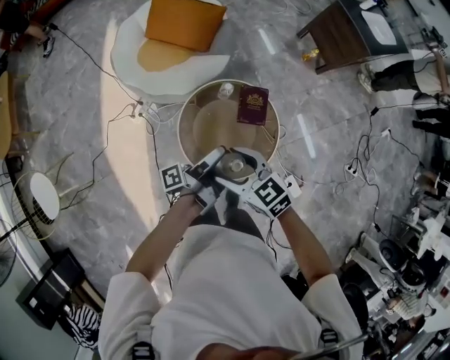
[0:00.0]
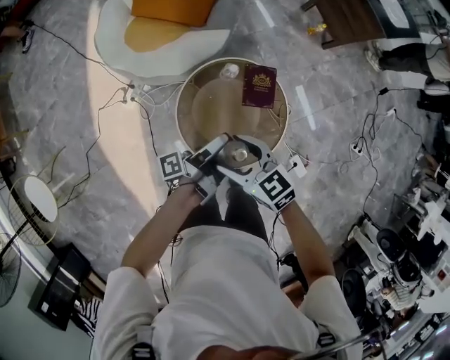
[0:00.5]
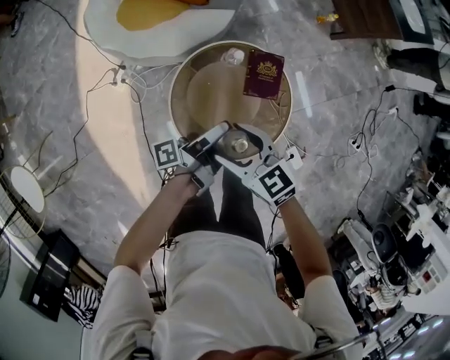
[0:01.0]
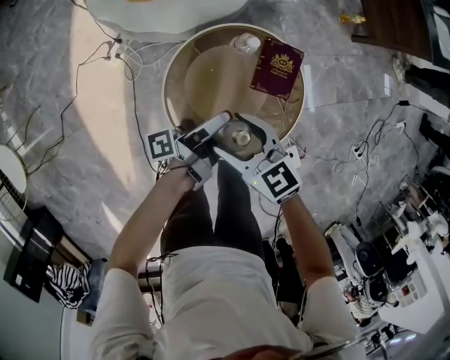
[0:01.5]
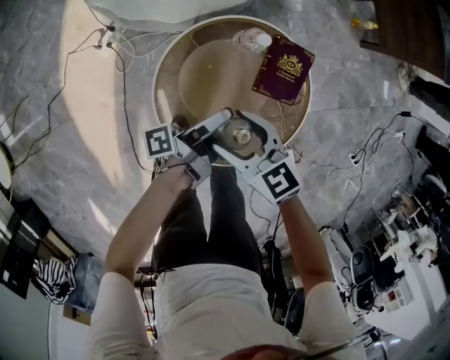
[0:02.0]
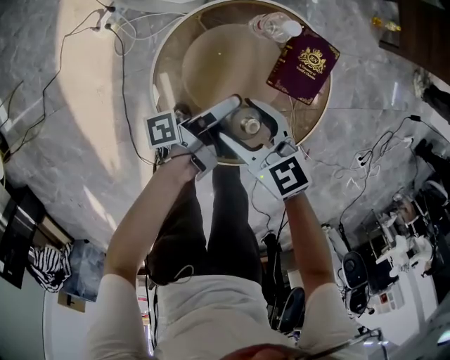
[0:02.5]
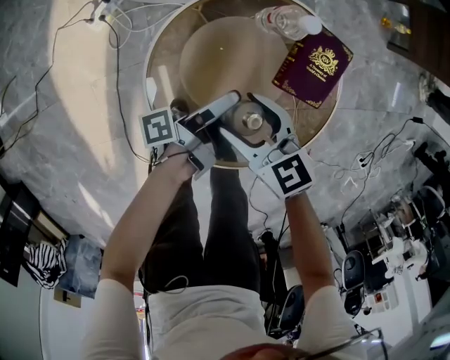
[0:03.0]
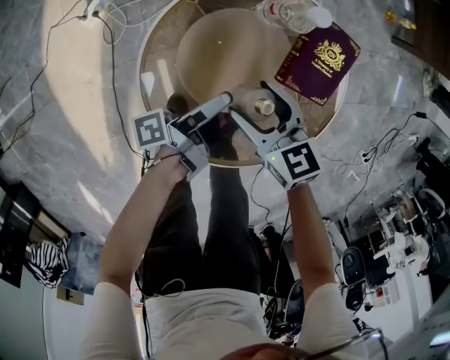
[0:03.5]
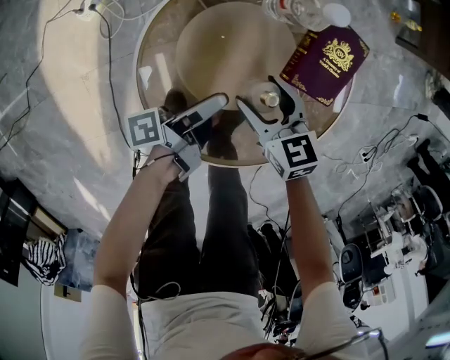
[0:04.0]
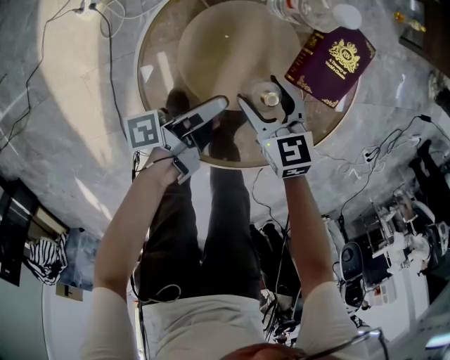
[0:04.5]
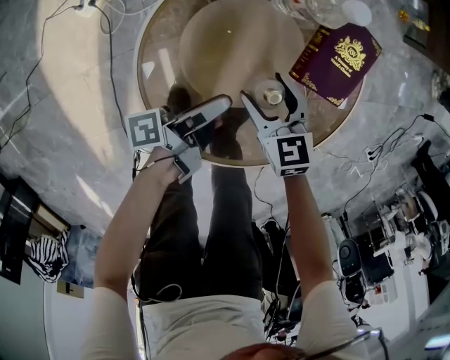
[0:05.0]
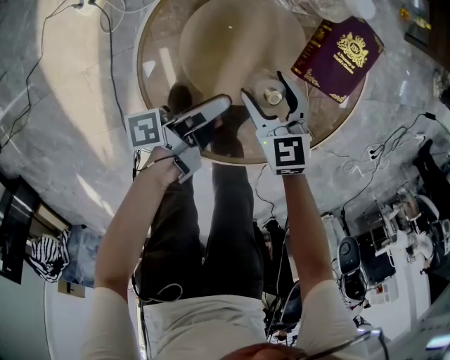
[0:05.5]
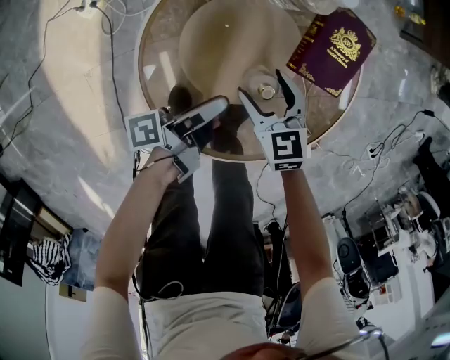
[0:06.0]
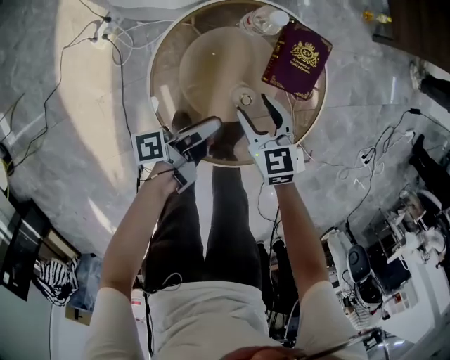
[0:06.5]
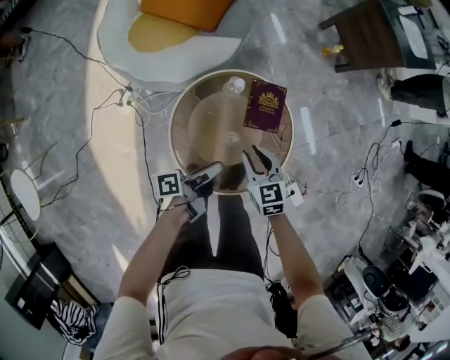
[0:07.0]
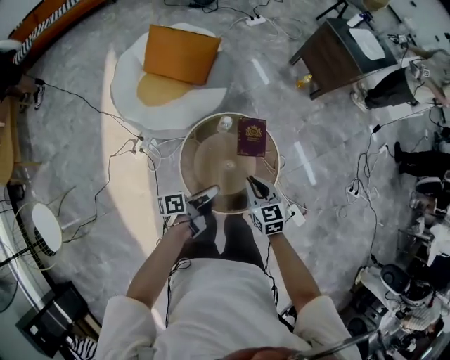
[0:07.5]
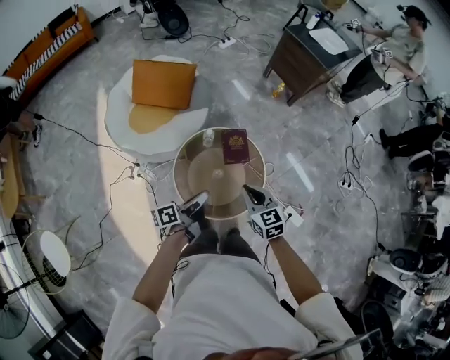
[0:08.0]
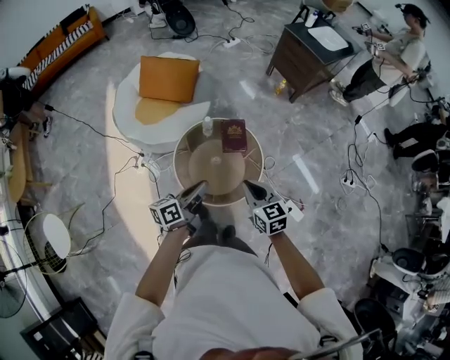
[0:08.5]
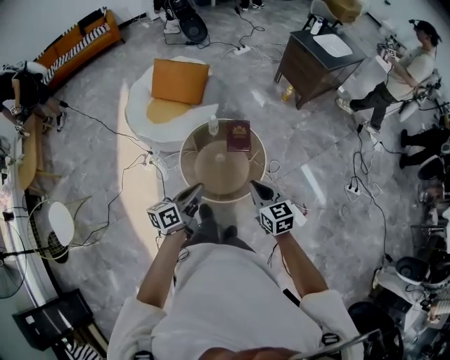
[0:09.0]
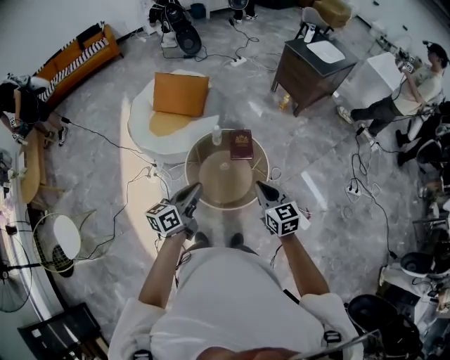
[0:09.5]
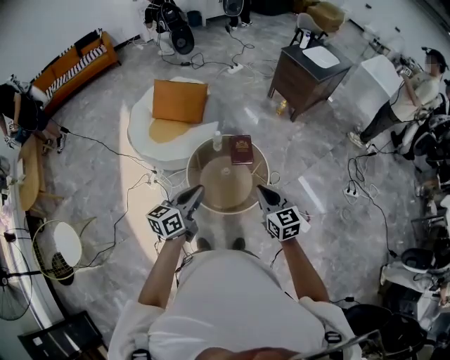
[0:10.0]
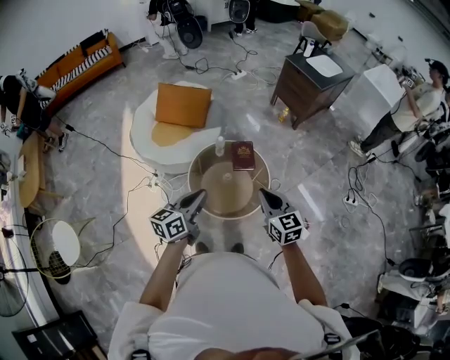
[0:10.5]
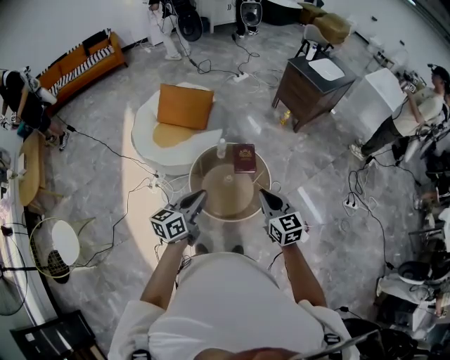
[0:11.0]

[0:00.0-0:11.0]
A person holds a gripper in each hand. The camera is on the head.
0:00.0 to 0:02.0: The right gripper moves downward, approximately 35 cm.
0:02.0 to 0:03.5: The right gripper goes approximately 20 cm downward.
0:03.5 to 0:05.5: The right gripper shifts roughly 10 cm downward.
0:05.5 to 0:07.5: The right gripper is displaced upward by roughly 50 cm, rotates some 20 degrees, and closes up.
0:07.5 to 0:09.0: The right gripper moves roughly 35 cm.
0:09.0 to 0:11.0: The right gripper moves upward, roughly 10 cm.

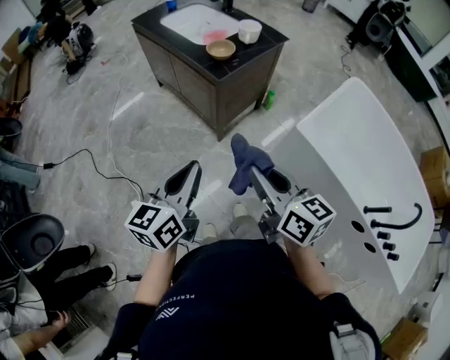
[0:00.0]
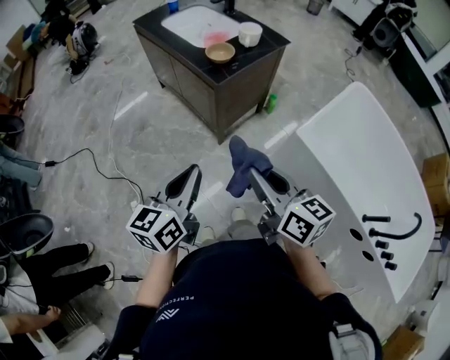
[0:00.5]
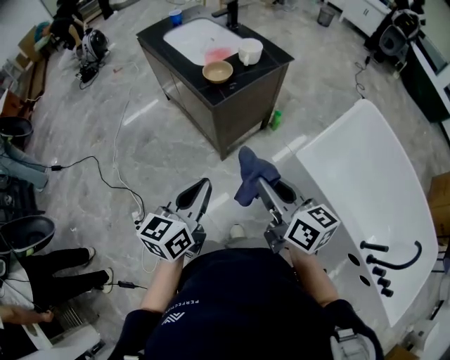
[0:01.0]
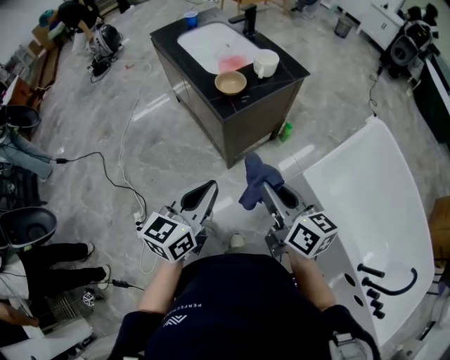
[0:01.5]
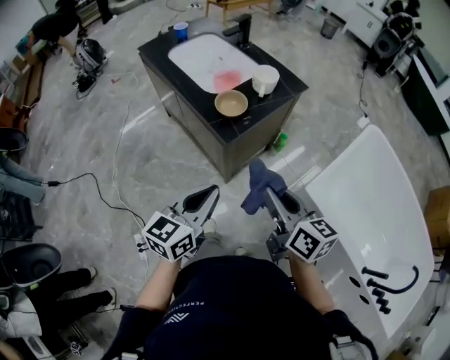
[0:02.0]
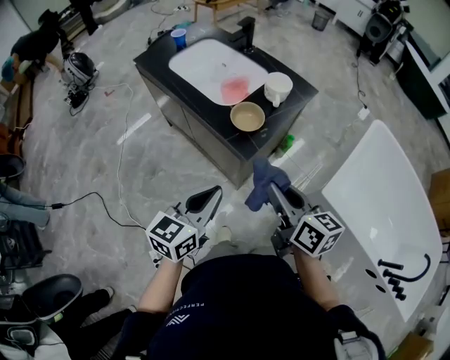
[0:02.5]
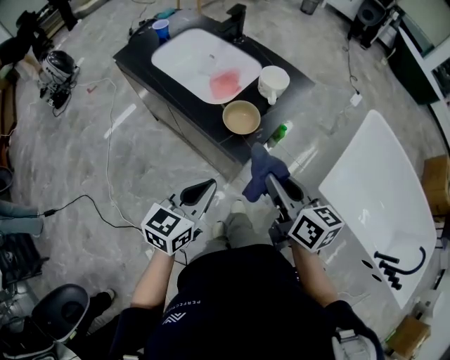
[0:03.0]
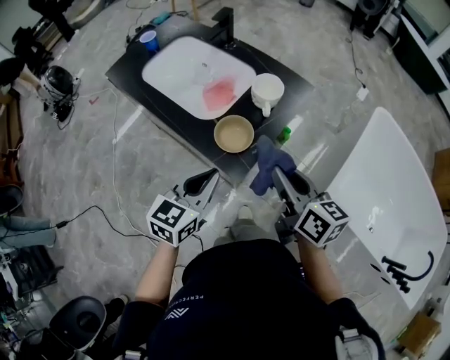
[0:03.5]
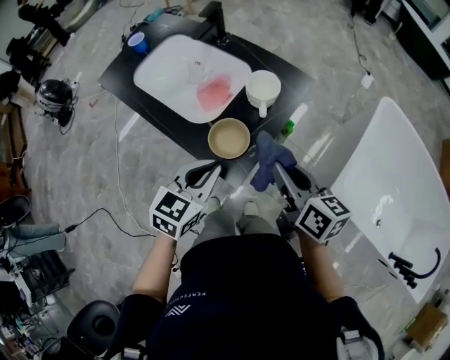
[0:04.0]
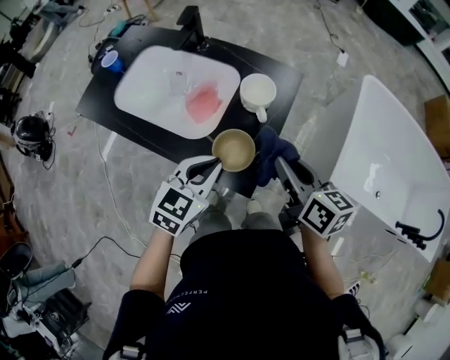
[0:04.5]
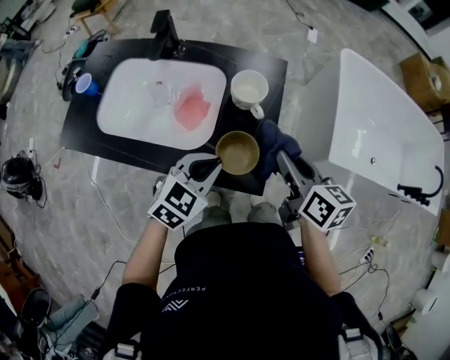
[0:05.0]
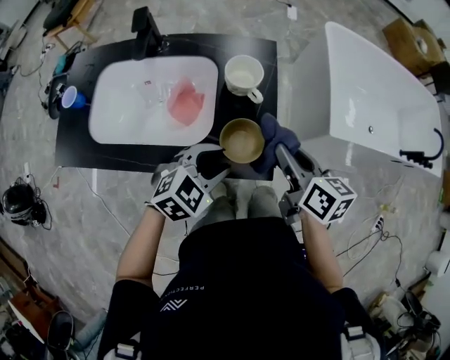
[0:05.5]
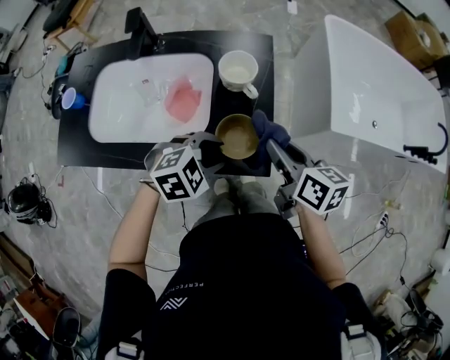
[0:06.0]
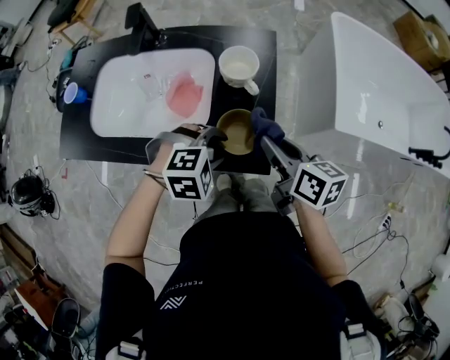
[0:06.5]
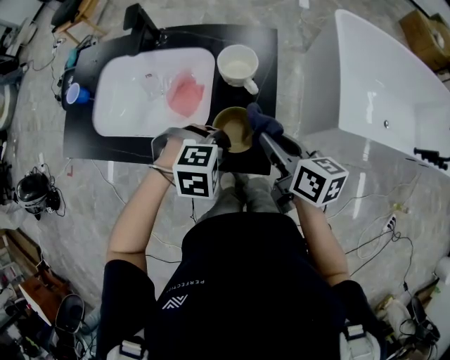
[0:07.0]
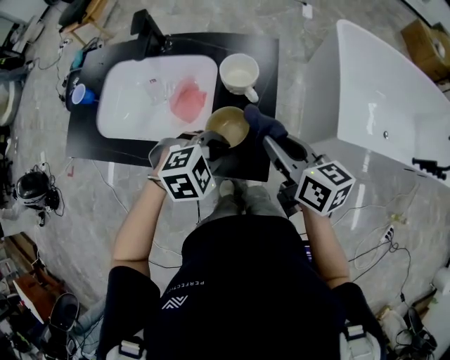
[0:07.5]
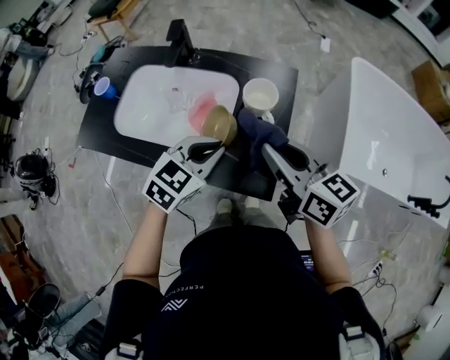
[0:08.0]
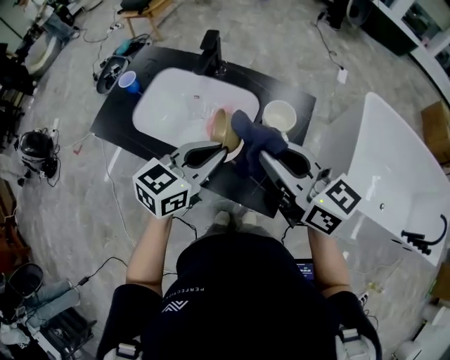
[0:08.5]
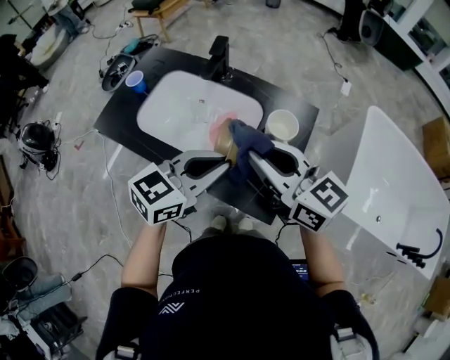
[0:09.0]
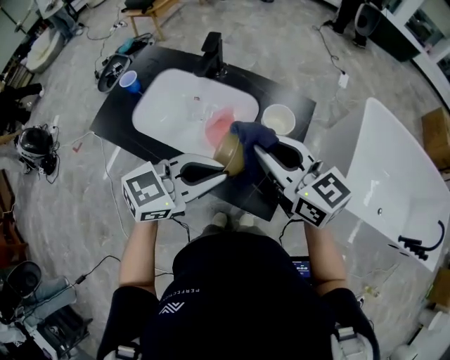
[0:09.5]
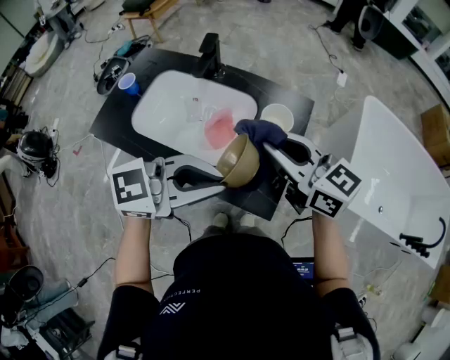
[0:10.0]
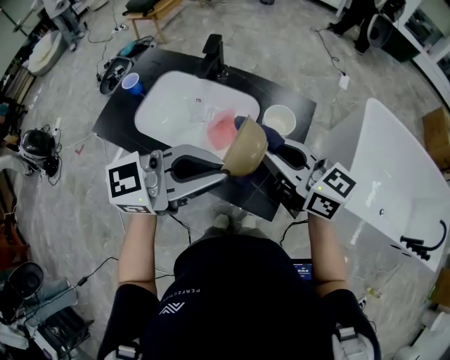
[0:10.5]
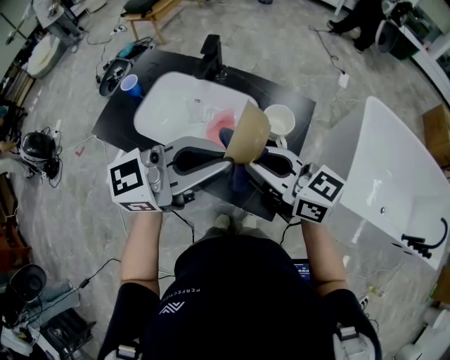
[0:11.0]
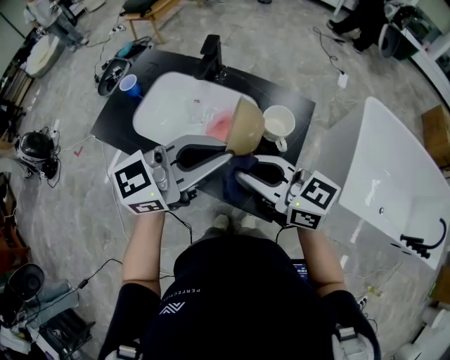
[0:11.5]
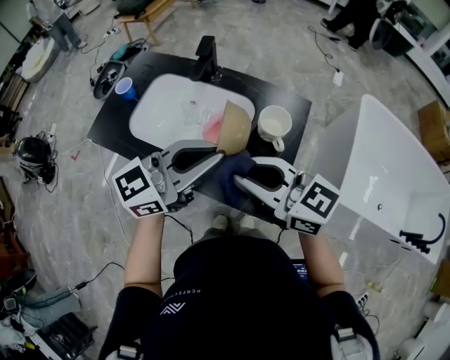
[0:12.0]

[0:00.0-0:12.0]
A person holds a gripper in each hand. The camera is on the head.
0:00.0 to 0:02.0: The grippers both shift forward by approximately 20 cm.
0:02.0 to 0:04.0: The grippers both shift forward by approximately 25 cm. The left gripper changes its angle by roughly 30 degrees.
0:04.0 to 0:06.0: The left gripper ends up about 10 cm from where it was, changes its angle by approximately 80 degrees, and opens its fingers; the right gripper shifts by some 5 cm, and rotates some 30 degrees.
0:06.0 to 0:08.0: The grippers both shift upward by some 10 cm. The right gripper swivels approximately 30 degrees. Meanwhile the left gripper swivels about 40 degrees, and closes up.
0:08.0 to 0:10.0: The left gripper shifts approximately 15 cm upward, and changes its angle by roughly 40 degrees, while the right gripper ends up about 10 cm from where it was, and turns by about 20 degrees.
0:10.0 to 0:12.0: The left gripper moves some 5 cm, and turns by roughly 20 degrees, while the right gripper changes place by some 10 cm.

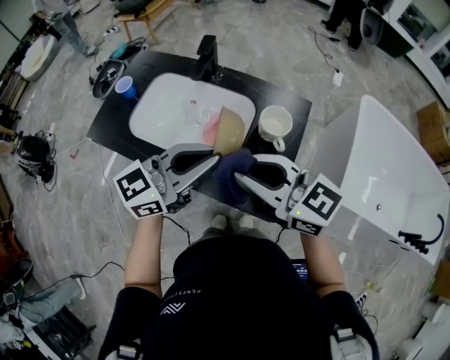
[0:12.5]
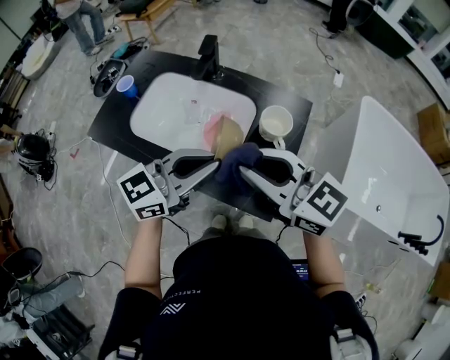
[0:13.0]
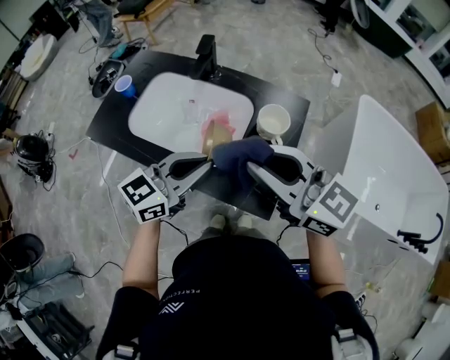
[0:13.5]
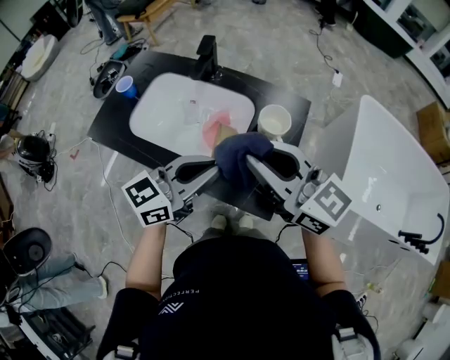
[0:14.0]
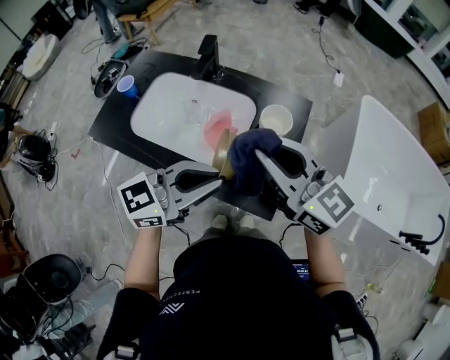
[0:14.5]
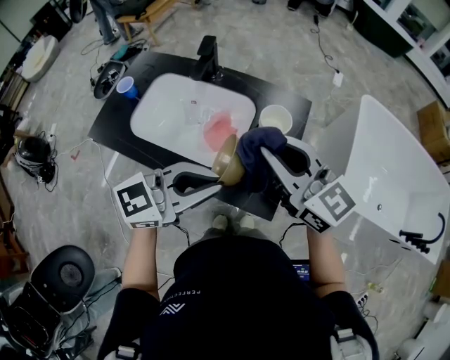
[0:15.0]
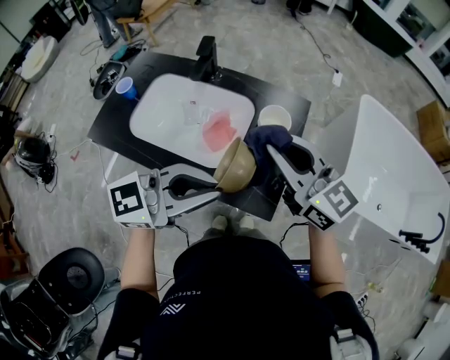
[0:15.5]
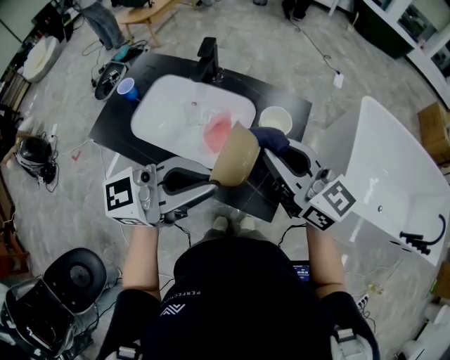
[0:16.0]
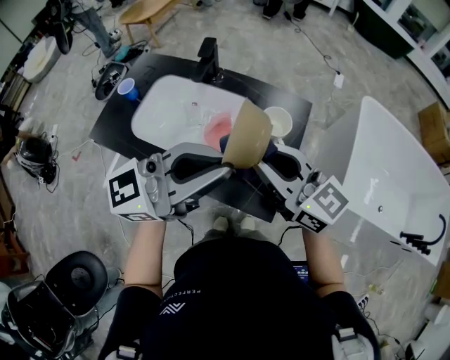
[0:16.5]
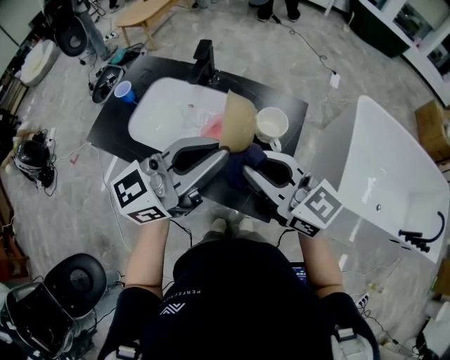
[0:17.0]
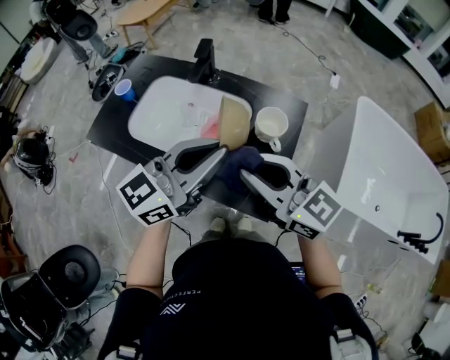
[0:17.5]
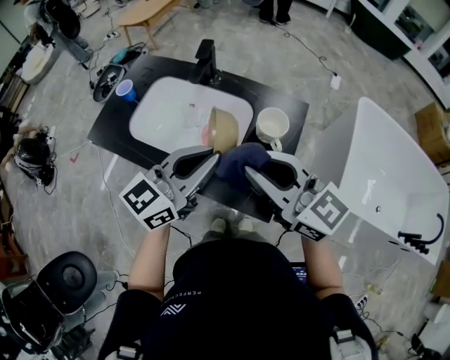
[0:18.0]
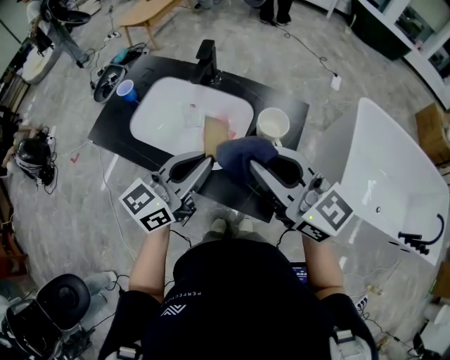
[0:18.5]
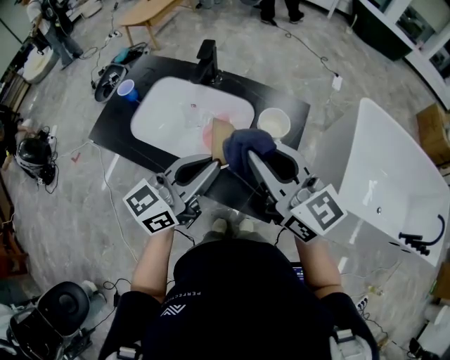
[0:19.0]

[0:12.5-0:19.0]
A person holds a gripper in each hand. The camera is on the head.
0:12.5 to 0:14.5: The right gripper changes place by approximately 5 cm, while the left gripper shifts by roughly 5 cm.
0:14.5 to 0:17.0: The left gripper moves upward, some 10 cm.
0:17.0 to 0:19.0: The left gripper travels downward by approximately 10 cm.
